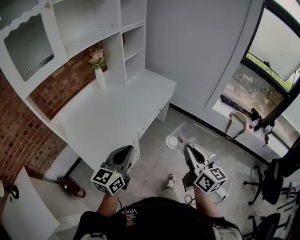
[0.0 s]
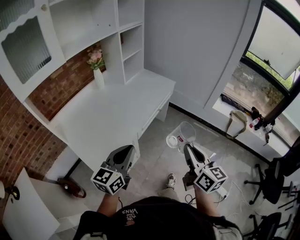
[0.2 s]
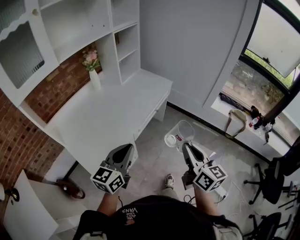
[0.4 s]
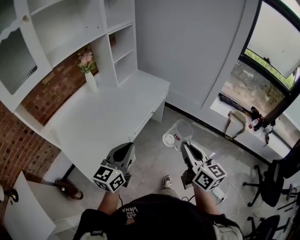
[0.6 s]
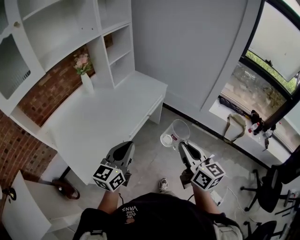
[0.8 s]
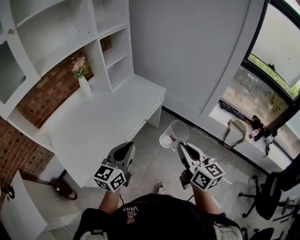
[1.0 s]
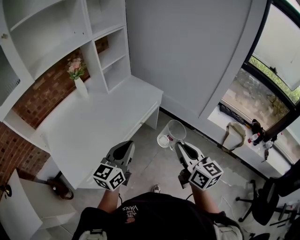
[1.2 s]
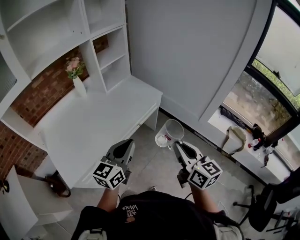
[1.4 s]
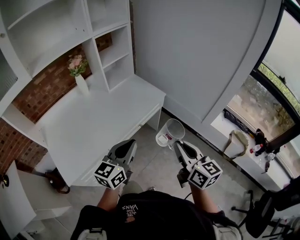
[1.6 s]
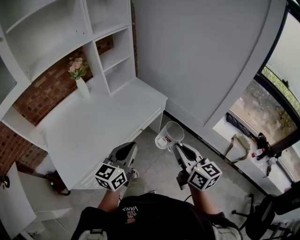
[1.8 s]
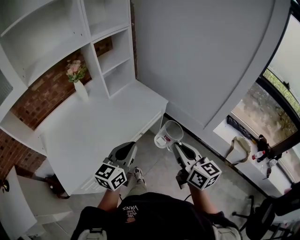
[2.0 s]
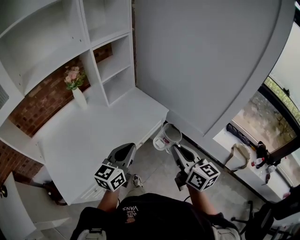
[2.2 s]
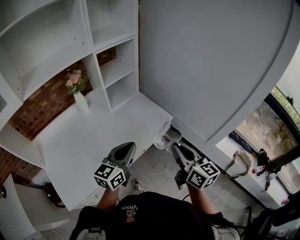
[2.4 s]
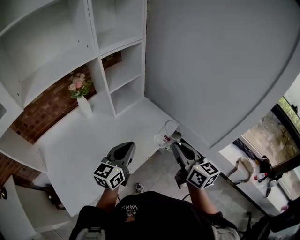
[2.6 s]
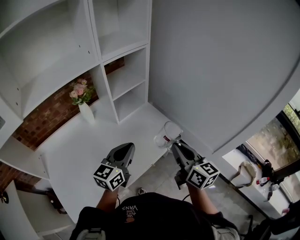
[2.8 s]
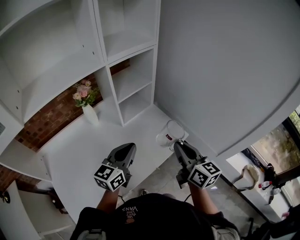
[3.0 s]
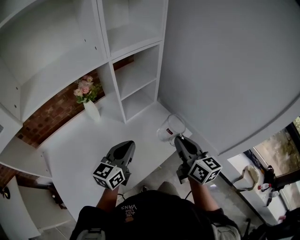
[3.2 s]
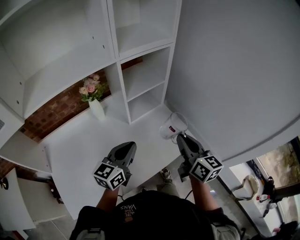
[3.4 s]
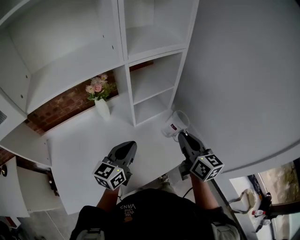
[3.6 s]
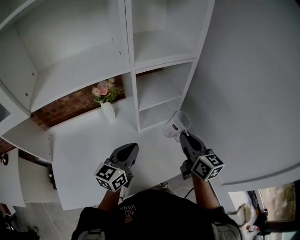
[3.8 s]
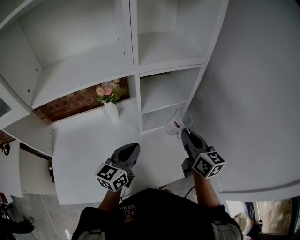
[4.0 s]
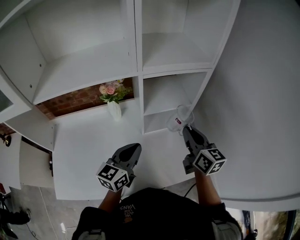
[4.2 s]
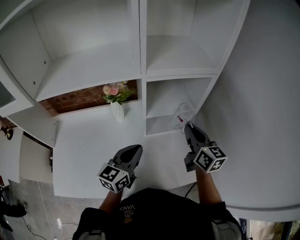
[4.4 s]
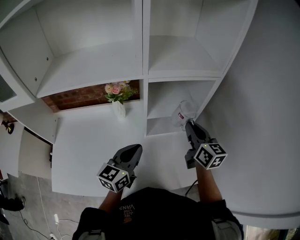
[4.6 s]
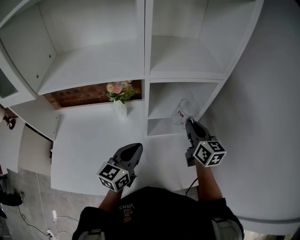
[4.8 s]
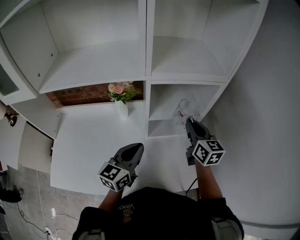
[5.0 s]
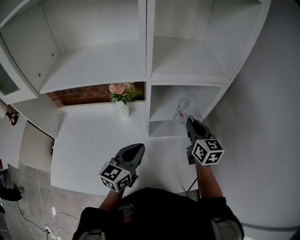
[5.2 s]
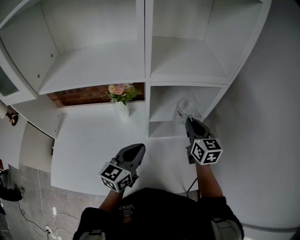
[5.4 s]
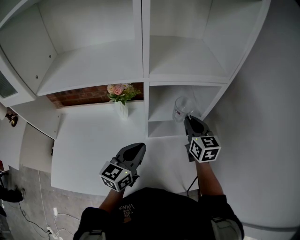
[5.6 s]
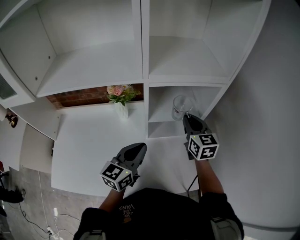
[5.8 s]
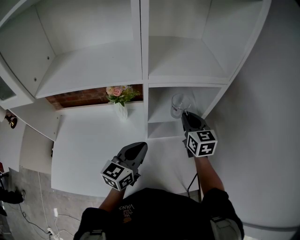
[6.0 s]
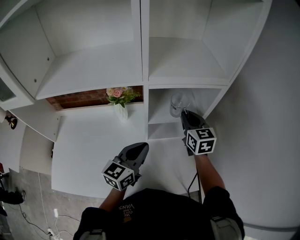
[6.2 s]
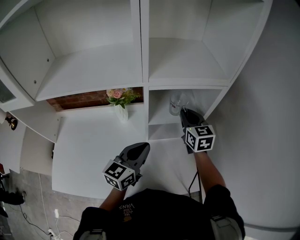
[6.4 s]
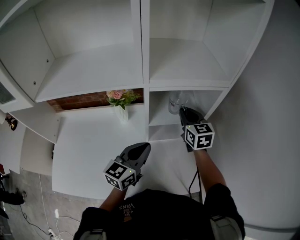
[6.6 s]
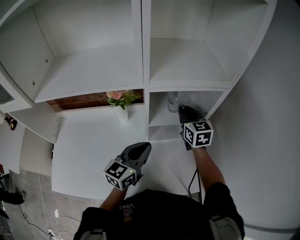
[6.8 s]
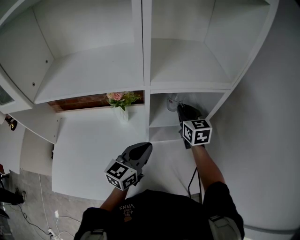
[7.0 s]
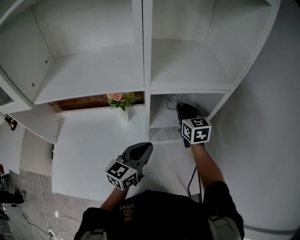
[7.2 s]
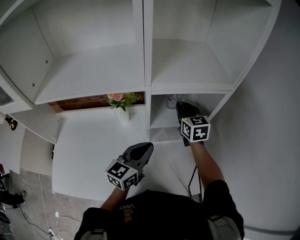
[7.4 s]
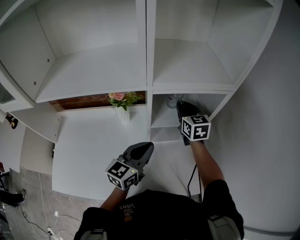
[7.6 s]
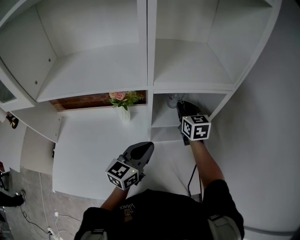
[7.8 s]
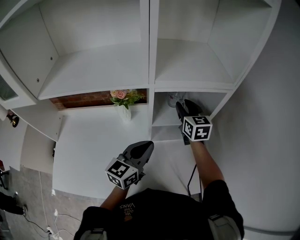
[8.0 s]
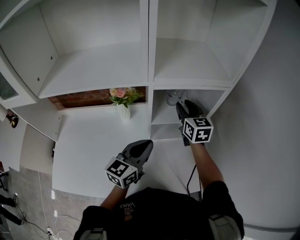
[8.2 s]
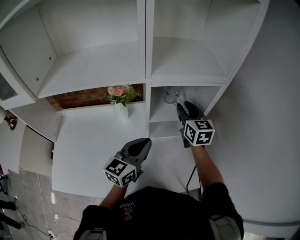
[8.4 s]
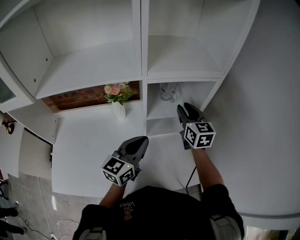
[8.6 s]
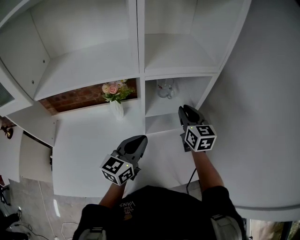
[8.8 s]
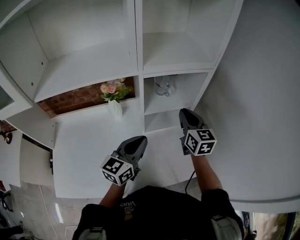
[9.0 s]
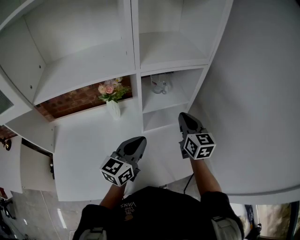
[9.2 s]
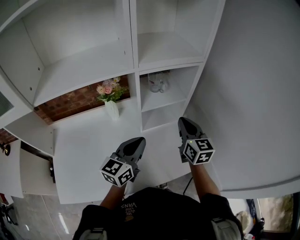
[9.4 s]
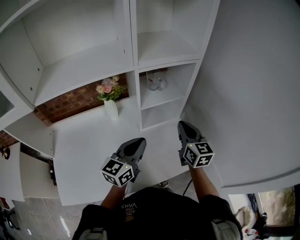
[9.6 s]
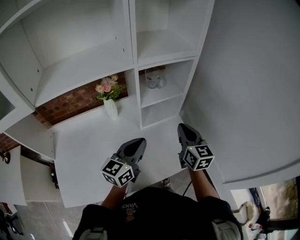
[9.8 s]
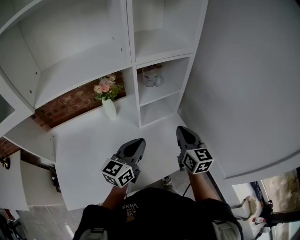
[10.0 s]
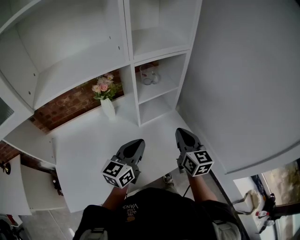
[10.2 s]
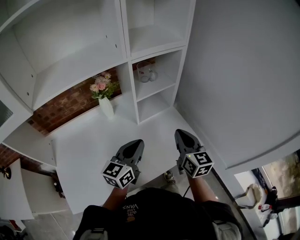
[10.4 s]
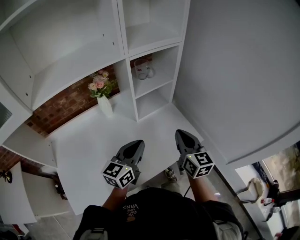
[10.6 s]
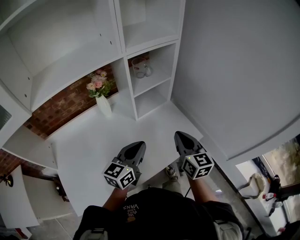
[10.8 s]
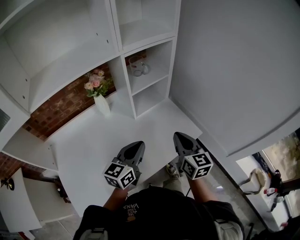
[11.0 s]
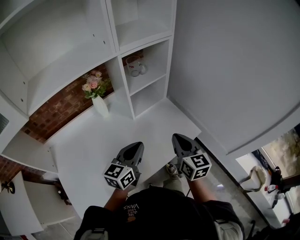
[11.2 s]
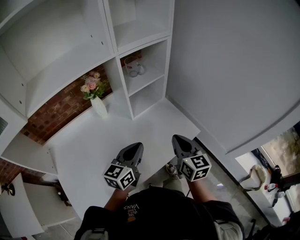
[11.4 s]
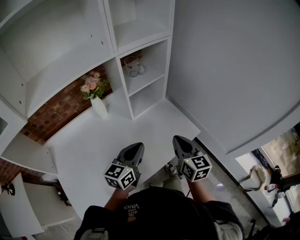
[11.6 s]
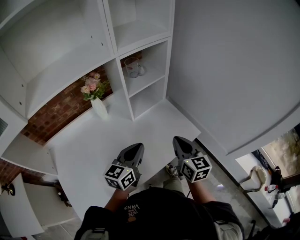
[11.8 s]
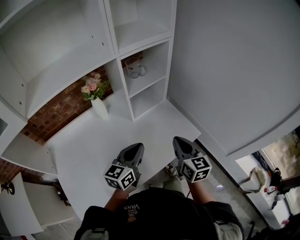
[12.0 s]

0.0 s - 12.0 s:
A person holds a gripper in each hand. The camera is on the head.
0.0 s - 1.6 s: The left gripper shifts roughly 30 cm to the right and forward. Meanwhile the right gripper shifts roughly 30 cm forward and to the right.
1.6 s - 3.0 s: The right gripper heads forward, covering roughly 30 cm. The left gripper heads forward and to the left, covering approximately 35 cm.
3.0 s - 4.4 s: The right gripper changes place by approximately 30 cm, and swivels about 20 degrees; the left gripper shifts by some 15 cm, and changes its angle by some 30 degrees.
4.4 s - 6.0 s: The right gripper heads forward, covering some 10 cm, and rotates about 20 degrees.
6.0 s - 7.6 s: The right gripper travels forward by approximately 5 cm.
7.6 s - 9.0 s: The left gripper heads backward, covering about 5 cm. The right gripper is displaced backward and to the right by about 15 cm, and opens and closes again.
9.0 s - 10.4 s: The left gripper goes about 10 cm backward. The right gripper moves backward, roughly 20 cm.
10.4 s - 12.0 s: The right gripper goes approximately 5 cm backward.

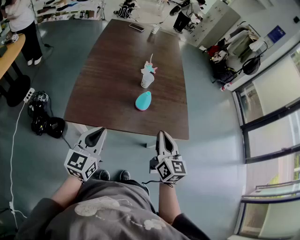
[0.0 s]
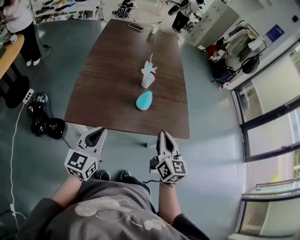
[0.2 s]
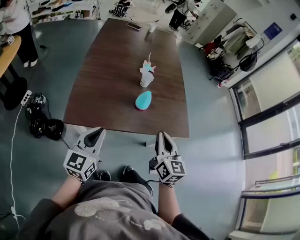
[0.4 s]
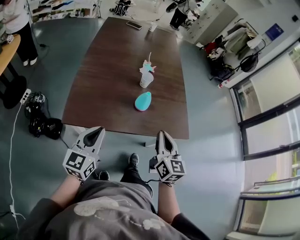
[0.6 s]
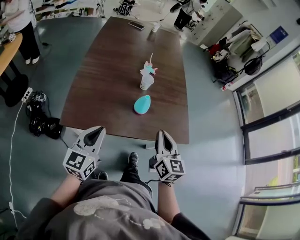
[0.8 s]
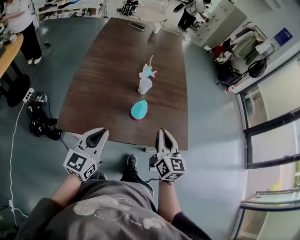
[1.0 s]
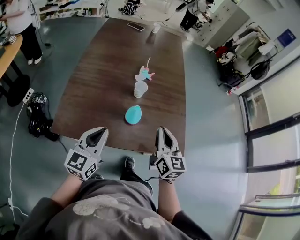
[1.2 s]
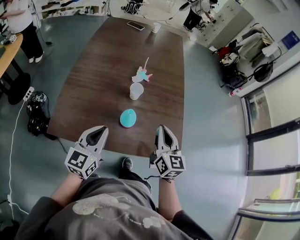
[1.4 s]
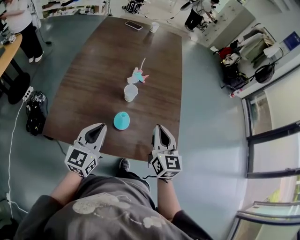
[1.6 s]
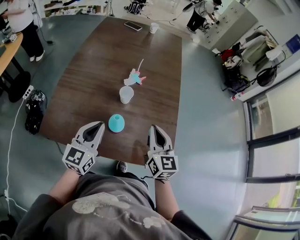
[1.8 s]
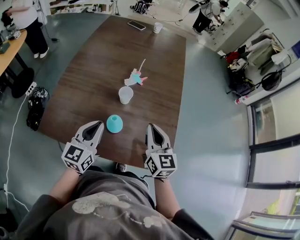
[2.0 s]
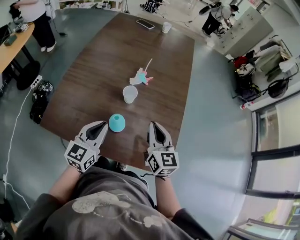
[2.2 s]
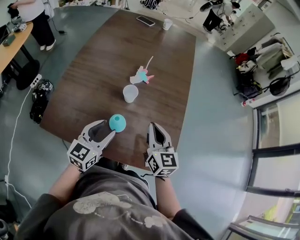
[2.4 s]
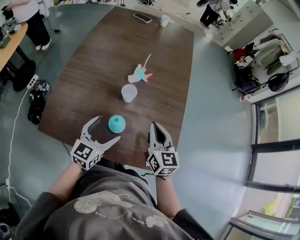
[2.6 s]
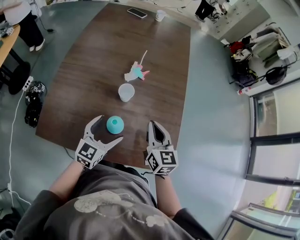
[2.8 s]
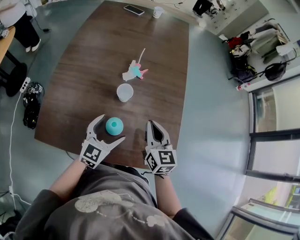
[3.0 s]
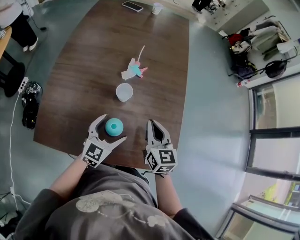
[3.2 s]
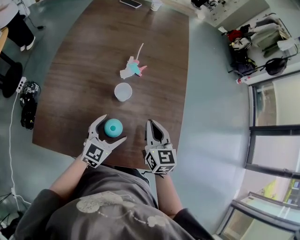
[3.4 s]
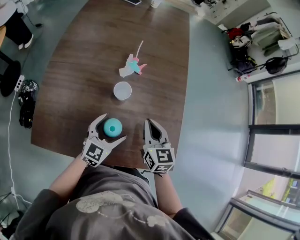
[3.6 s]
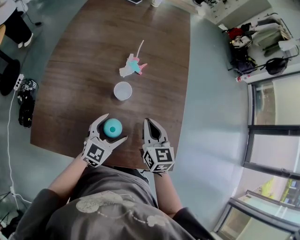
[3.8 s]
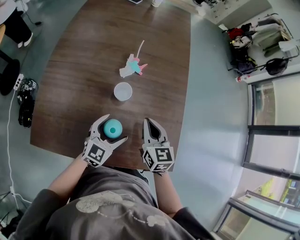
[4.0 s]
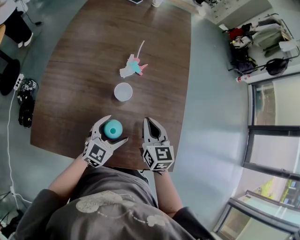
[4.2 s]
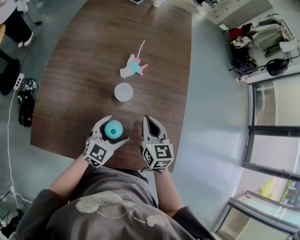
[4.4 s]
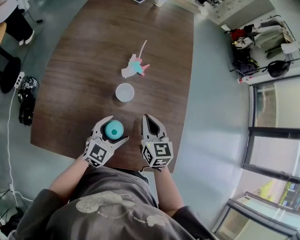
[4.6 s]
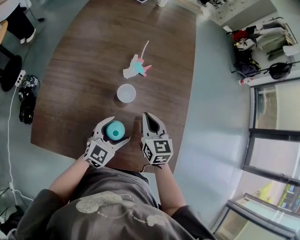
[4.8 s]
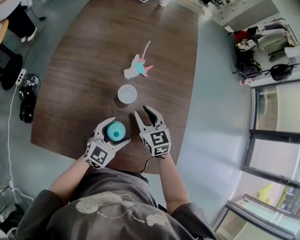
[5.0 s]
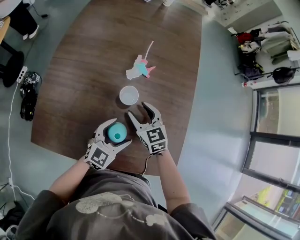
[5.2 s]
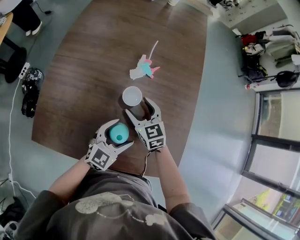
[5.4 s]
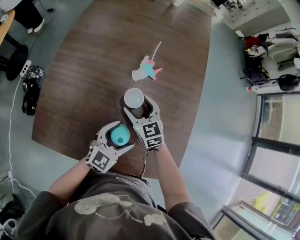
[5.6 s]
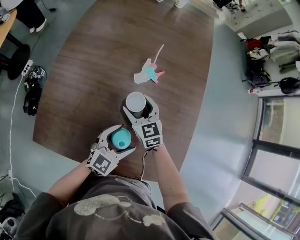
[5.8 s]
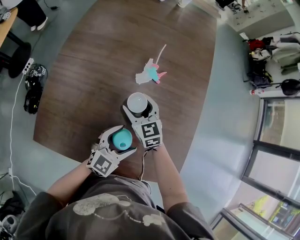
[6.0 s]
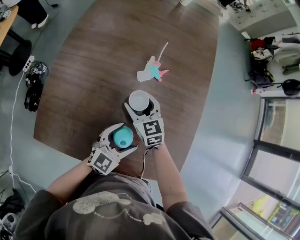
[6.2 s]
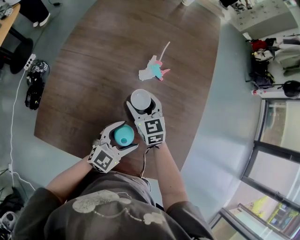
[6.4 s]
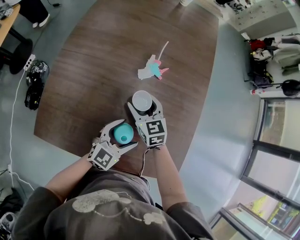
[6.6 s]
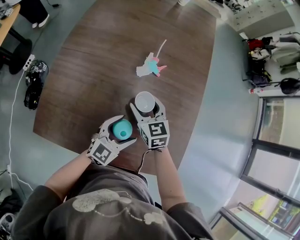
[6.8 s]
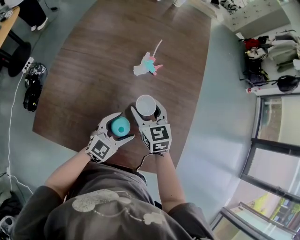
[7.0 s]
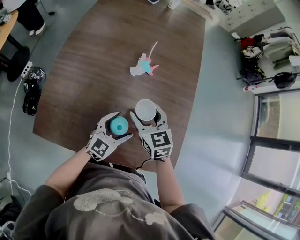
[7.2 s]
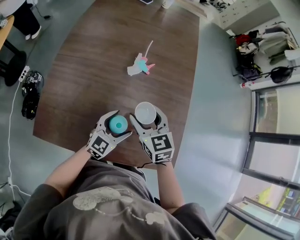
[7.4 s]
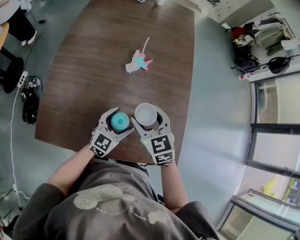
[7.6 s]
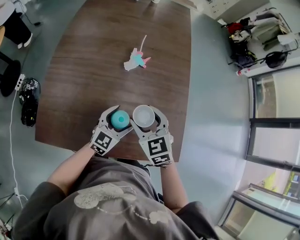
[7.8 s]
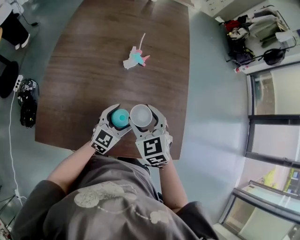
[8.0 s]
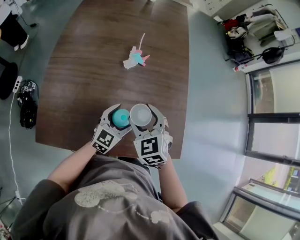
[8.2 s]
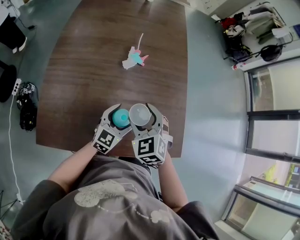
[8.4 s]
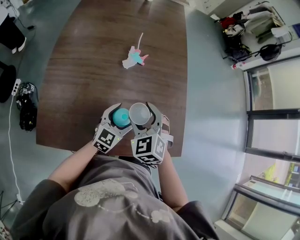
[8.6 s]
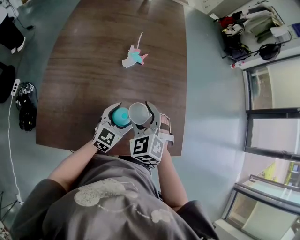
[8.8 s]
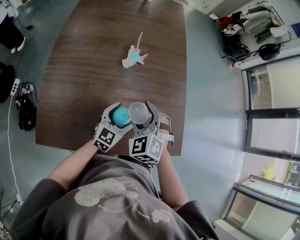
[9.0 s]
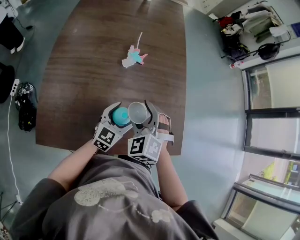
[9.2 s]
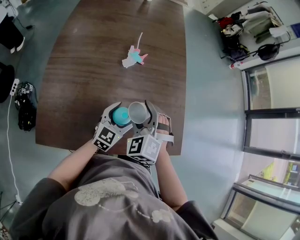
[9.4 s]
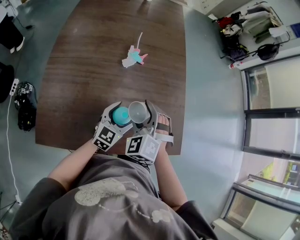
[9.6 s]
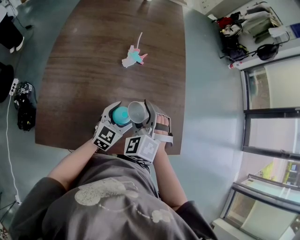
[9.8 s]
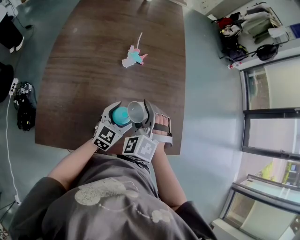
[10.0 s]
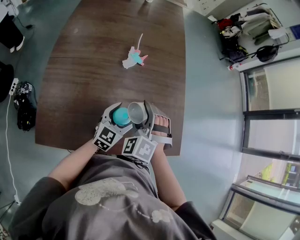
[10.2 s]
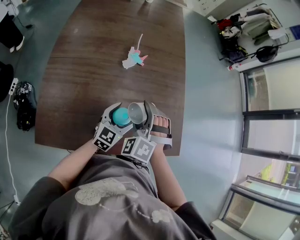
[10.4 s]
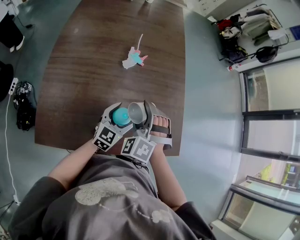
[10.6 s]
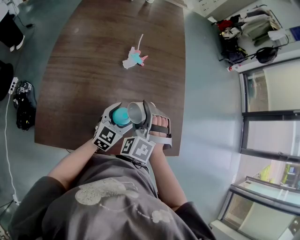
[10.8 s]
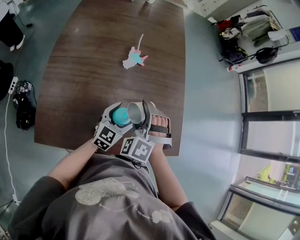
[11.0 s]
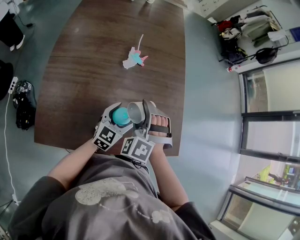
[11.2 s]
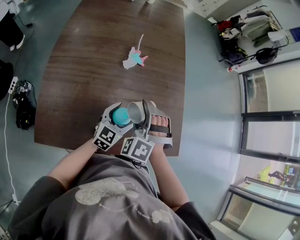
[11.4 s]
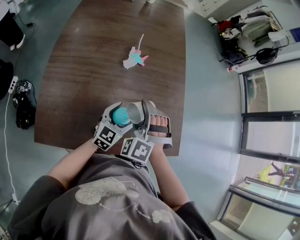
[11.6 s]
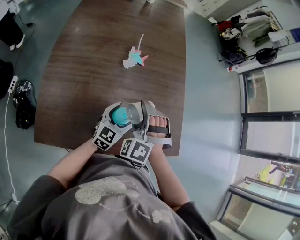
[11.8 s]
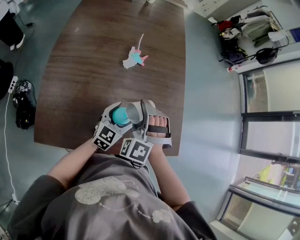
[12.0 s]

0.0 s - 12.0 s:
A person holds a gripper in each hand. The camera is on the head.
0.0 s - 1.6 s: The right gripper moves forward, some 20 cm; the left gripper travels forward and to the right by roughly 20 cm.
1.6 s - 3.0 s: The right gripper is displaced forward and downward by about 10 cm, while the left gripper goes some 15 cm downward, forward and to the right, and opens its fingers.
3.0 s - 4.4 s: The right gripper changes place by roughly 5 cm, while the left gripper is displaced downward by some 5 cm.
4.4 s - 6.0 s: The right gripper travels to the left, forward and downward by some 15 cm, changes its angle by roughly 30 degrees, and opens its fingers.
6.0 s - 7.6 s: The right gripper heads backward, upward and to the right, covering some 15 cm.
7.6 s - 9.0 s: The right gripper rotates roughly 40 degrees.
9.0 s - 10.4 s: The grippers stay close to where they were, moving slightly.
10.4 s - 12.0 s: The grippers make only small movements.
